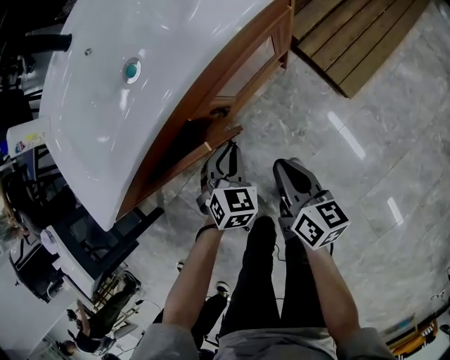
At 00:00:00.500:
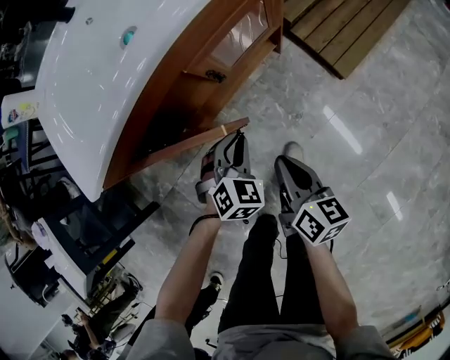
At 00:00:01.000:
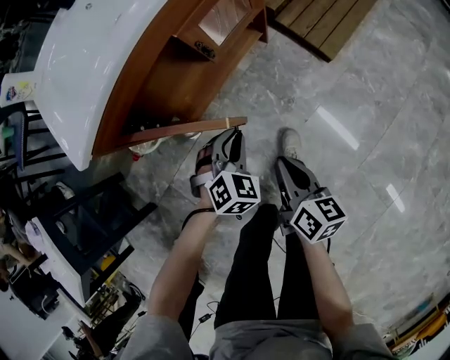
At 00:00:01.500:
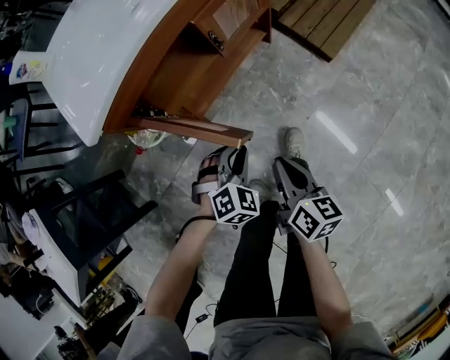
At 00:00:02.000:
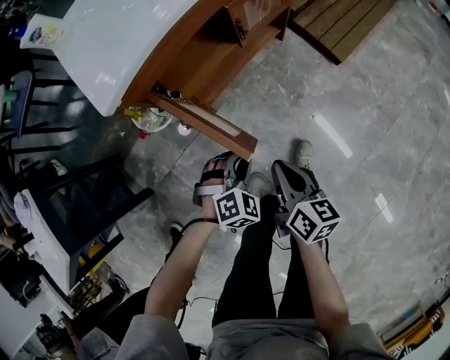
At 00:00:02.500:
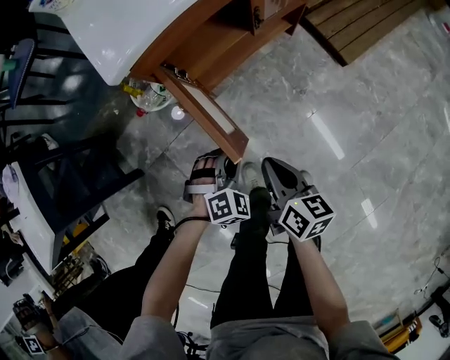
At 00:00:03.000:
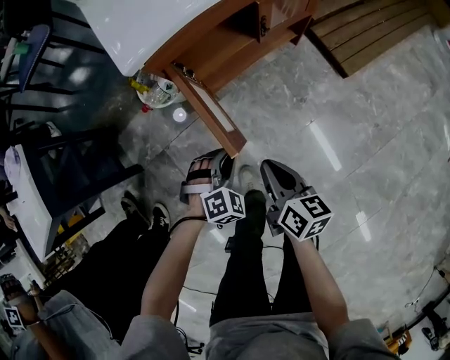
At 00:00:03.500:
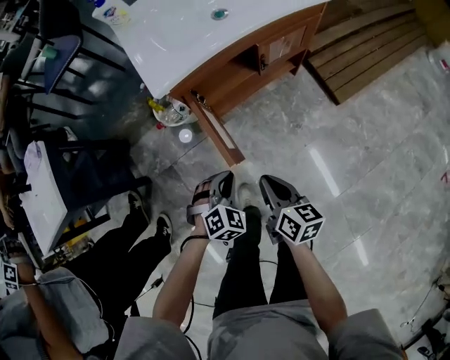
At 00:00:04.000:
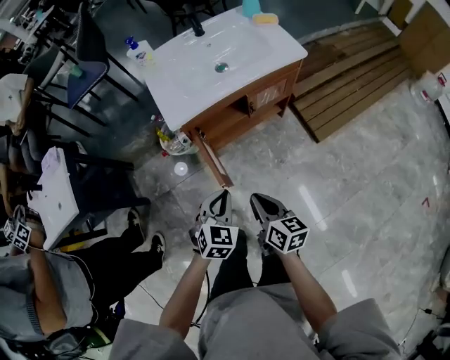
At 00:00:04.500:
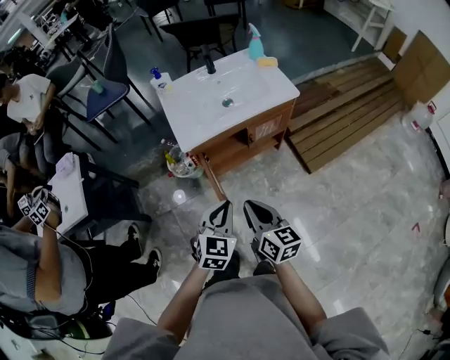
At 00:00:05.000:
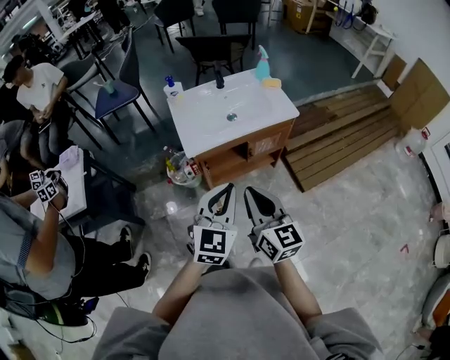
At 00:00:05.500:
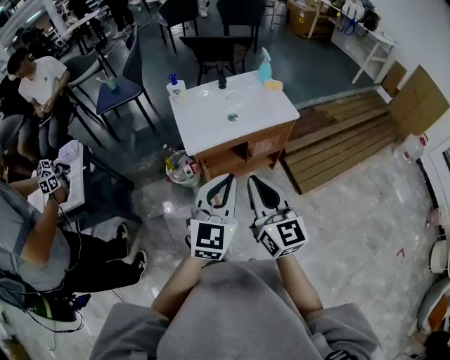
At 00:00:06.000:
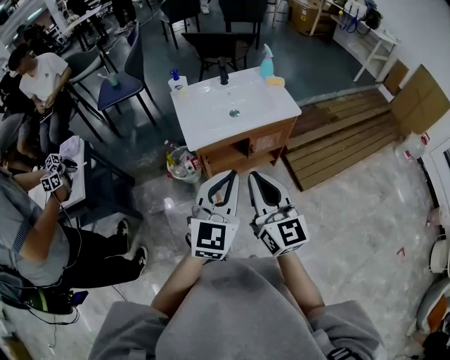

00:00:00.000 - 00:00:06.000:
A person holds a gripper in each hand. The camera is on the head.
00:00:00.000 - 00:00:02.000: The left gripper heads backward, covering roughly 25 cm, and swivels some 30 degrees; the right gripper is displaced backward and to the left by some 25 cm.
00:00:02.000 - 00:00:04.000: The two grippers go roughly 25 cm upward. The right gripper turns by some 20 degrees. Meanwhile the left gripper twists approximately 40 degrees counterclockwise, seen from behind.
00:00:04.000 - 00:00:06.000: The two grippers go some 35 cm upward. The right gripper swivels roughly 50 degrees. The left gripper points its fingers roughly 40 degrees further upward.

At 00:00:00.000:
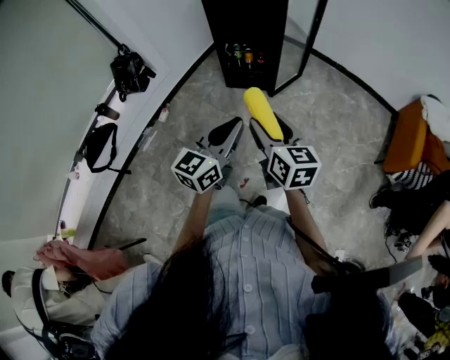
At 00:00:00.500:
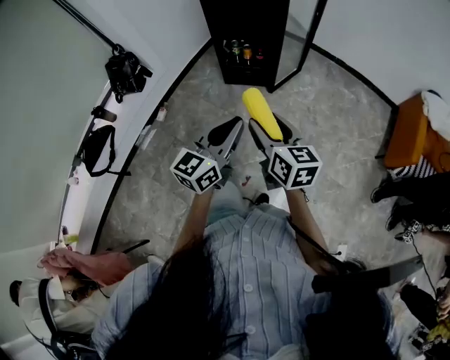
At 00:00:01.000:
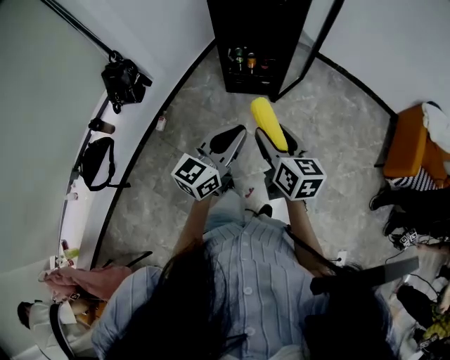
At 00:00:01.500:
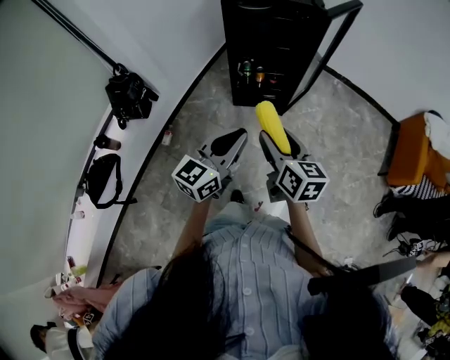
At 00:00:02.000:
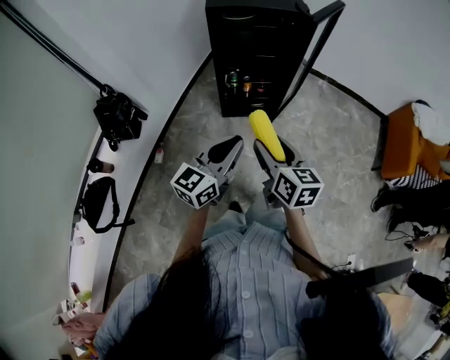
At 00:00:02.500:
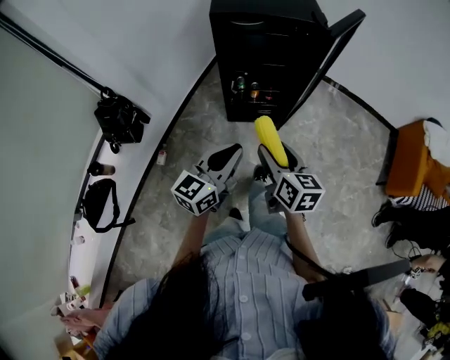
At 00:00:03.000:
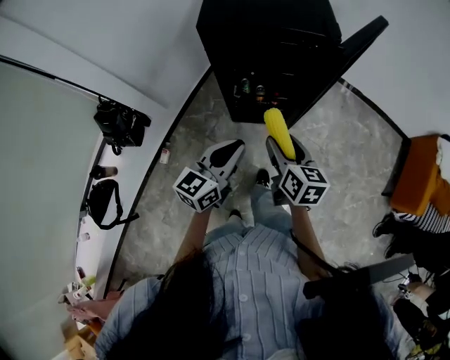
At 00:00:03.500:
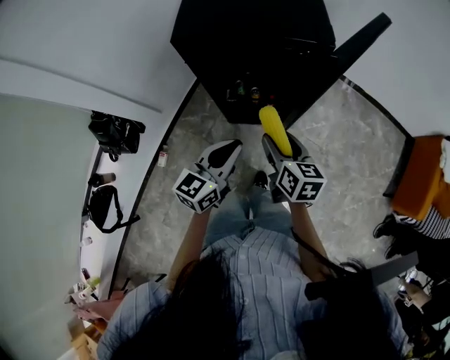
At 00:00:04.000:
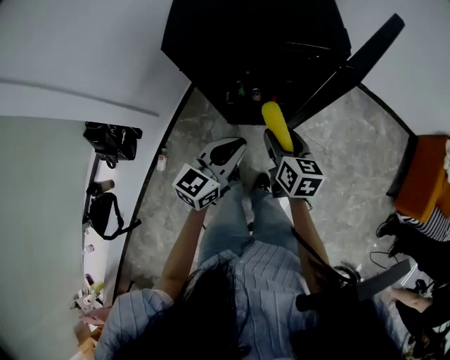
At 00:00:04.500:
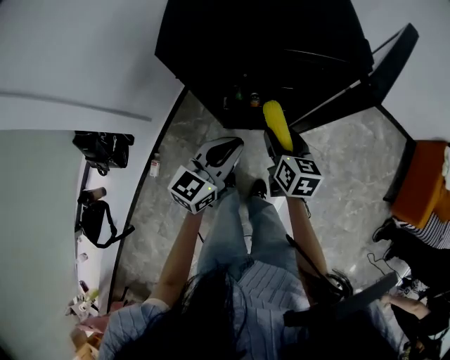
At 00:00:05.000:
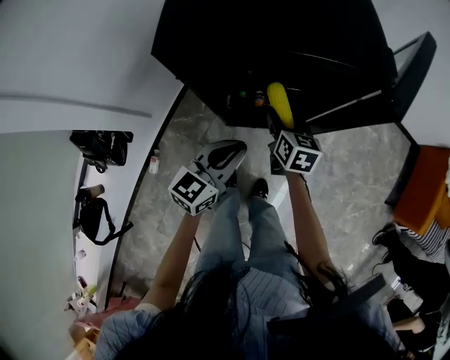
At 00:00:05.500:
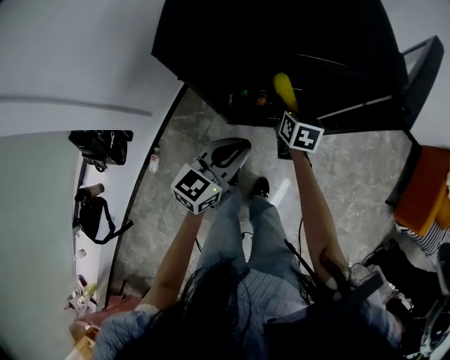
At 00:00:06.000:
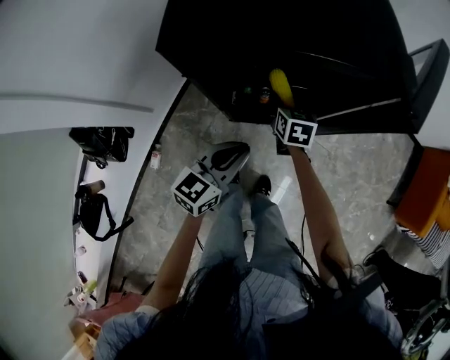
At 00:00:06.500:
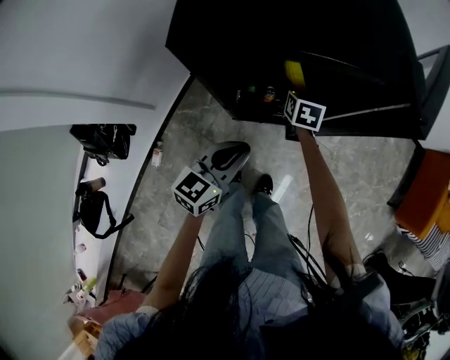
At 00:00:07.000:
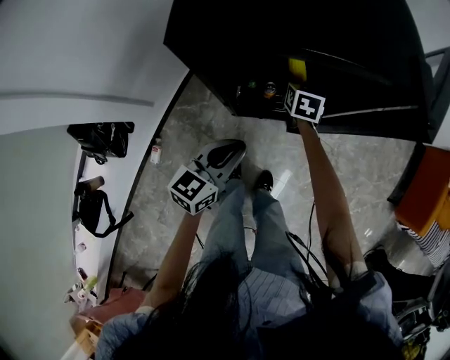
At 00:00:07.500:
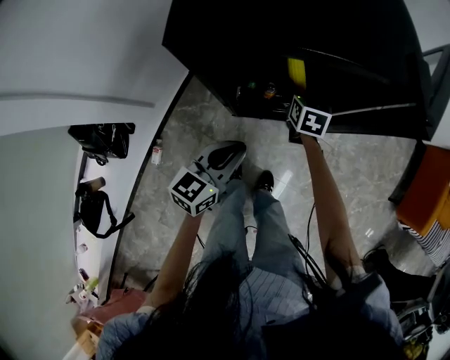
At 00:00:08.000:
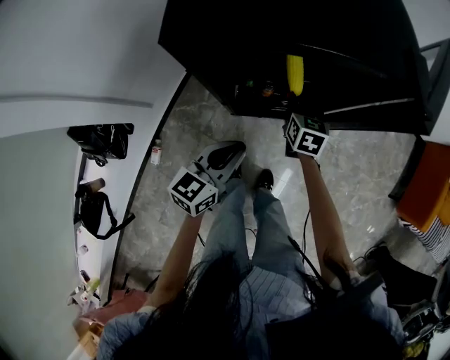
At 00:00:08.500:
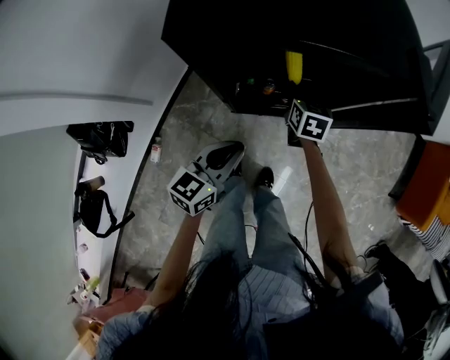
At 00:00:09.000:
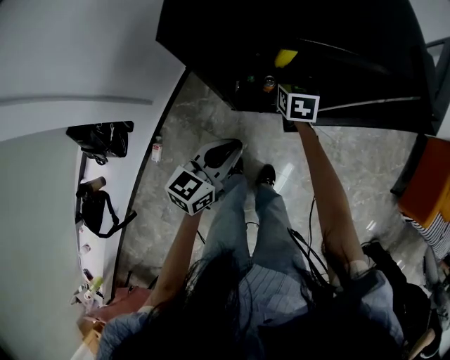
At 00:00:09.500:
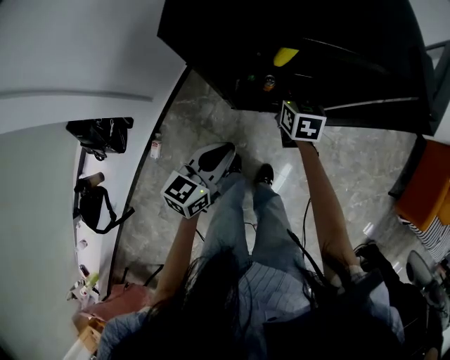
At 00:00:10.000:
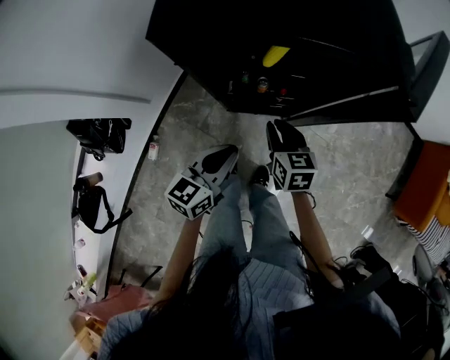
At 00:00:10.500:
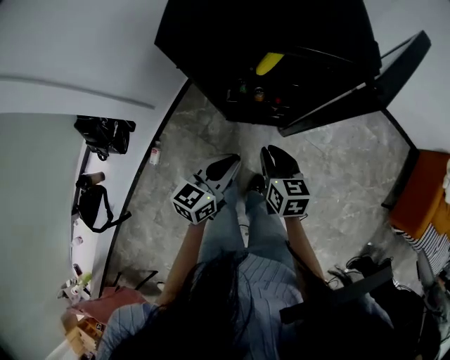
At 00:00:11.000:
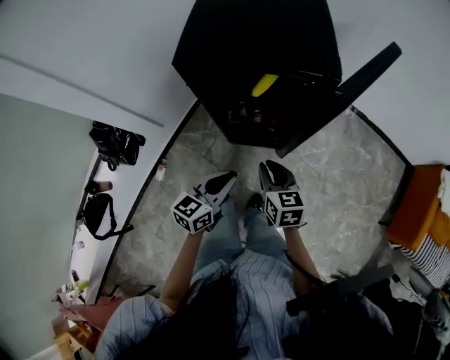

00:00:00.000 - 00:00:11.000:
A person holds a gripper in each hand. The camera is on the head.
00:00:00.000 - 00:00:02.000: The grippers both shift to the left and forward by about 25 cm.
00:00:02.000 - 00:00:03.500: Both grippers move forward, approximately 30 cm.
00:00:03.500 - 00:00:05.500: The left gripper is displaced forward and downward by roughly 15 cm, while the right gripper is displaced forward and downward by about 30 cm.
00:00:05.500 - 00:00:07.500: The left gripper ends up approximately 5 cm from where it was.
00:00:07.500 - 00:00:09.000: The right gripper closes up.
00:00:09.000 - 00:00:11.000: The right gripper goes about 30 cm backward and upward. Meanwhile the left gripper goes roughly 15 cm upward, backward and to the right.

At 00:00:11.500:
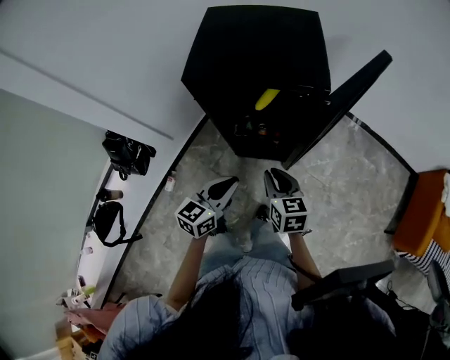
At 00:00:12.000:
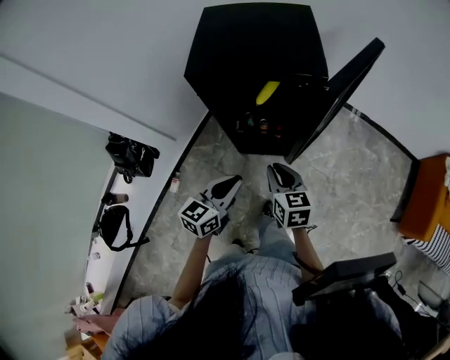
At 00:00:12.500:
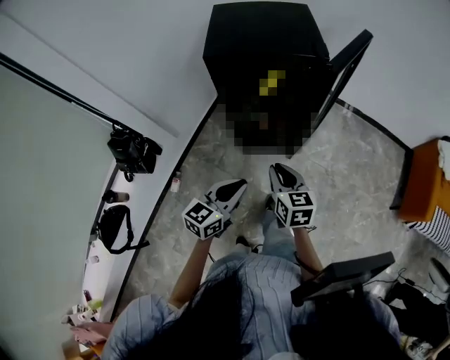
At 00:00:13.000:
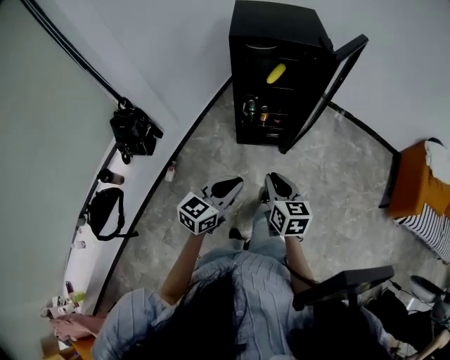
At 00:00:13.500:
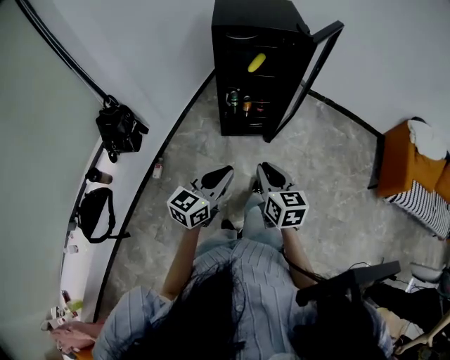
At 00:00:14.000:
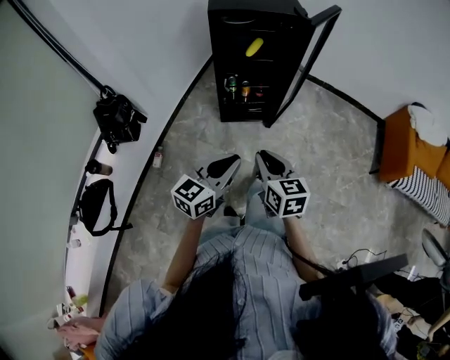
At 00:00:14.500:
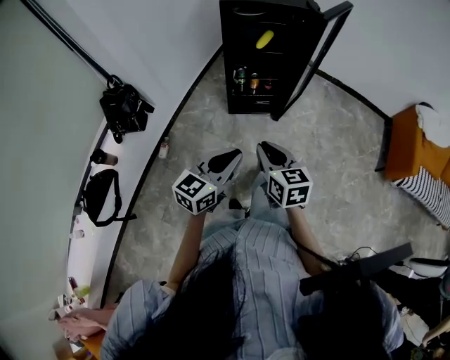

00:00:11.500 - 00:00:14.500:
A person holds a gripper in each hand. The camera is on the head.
00:00:11.500 - 00:00:13.000: Both grippers move backward, approximately 25 cm.
00:00:13.000 - 00:00:14.500: The grippers both shift backward by about 5 cm.

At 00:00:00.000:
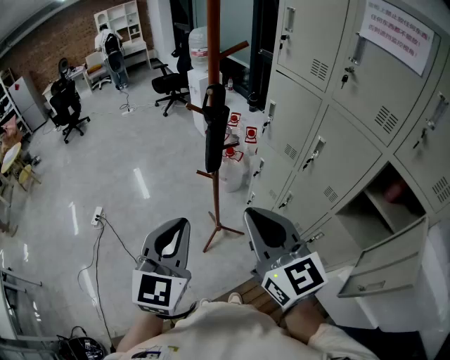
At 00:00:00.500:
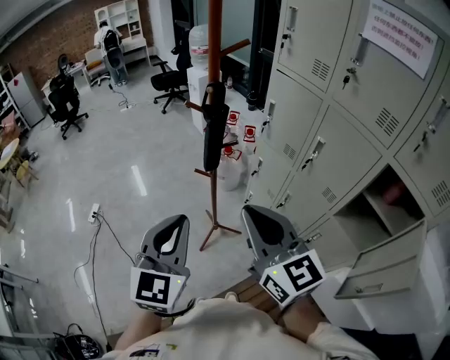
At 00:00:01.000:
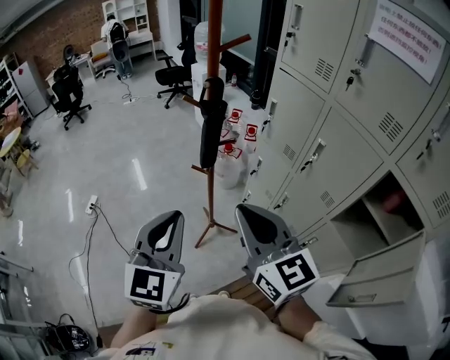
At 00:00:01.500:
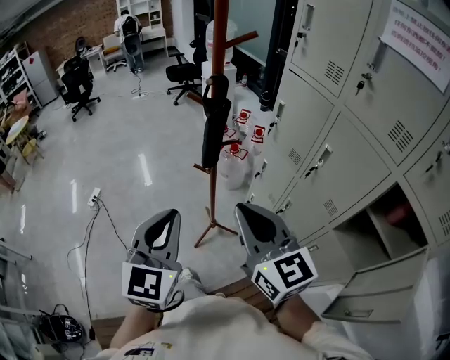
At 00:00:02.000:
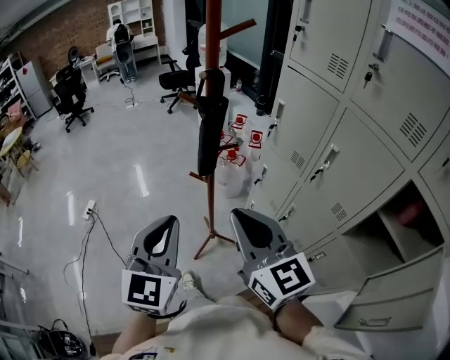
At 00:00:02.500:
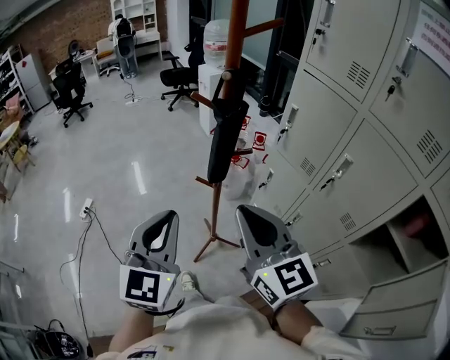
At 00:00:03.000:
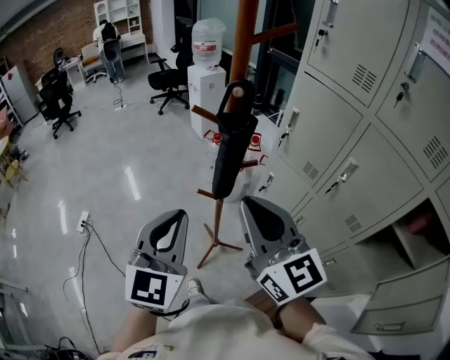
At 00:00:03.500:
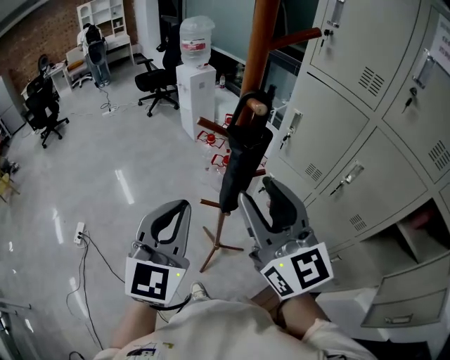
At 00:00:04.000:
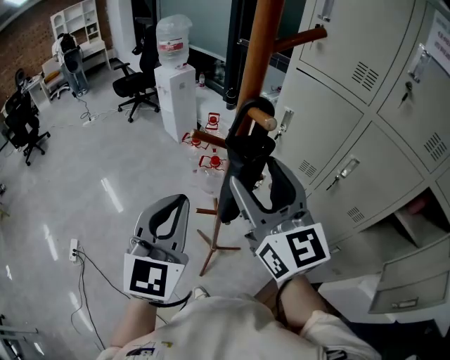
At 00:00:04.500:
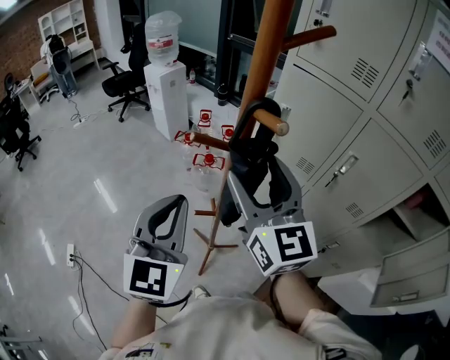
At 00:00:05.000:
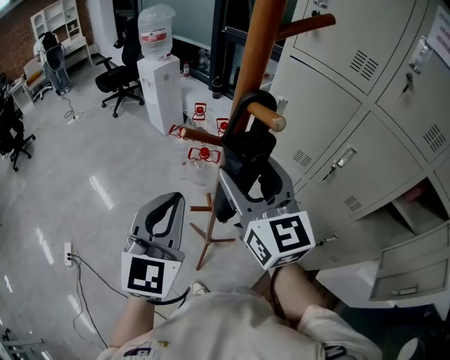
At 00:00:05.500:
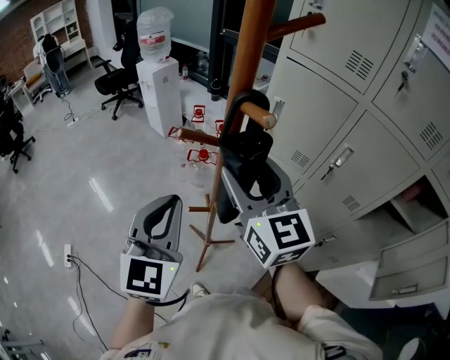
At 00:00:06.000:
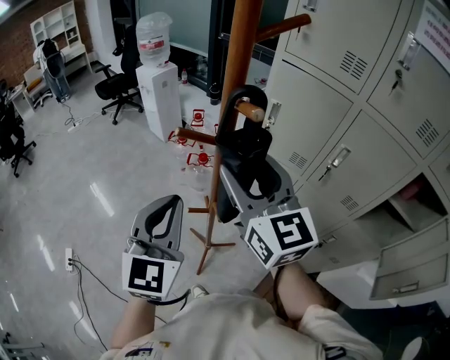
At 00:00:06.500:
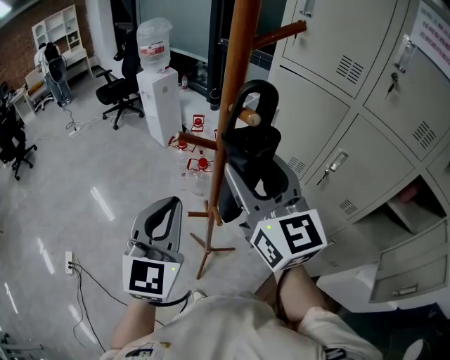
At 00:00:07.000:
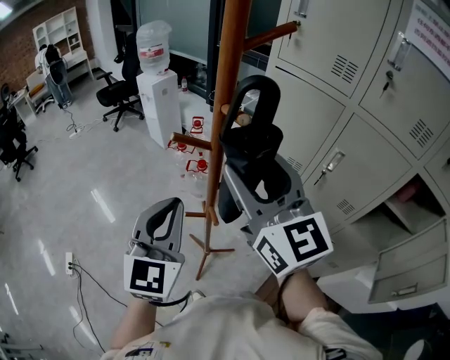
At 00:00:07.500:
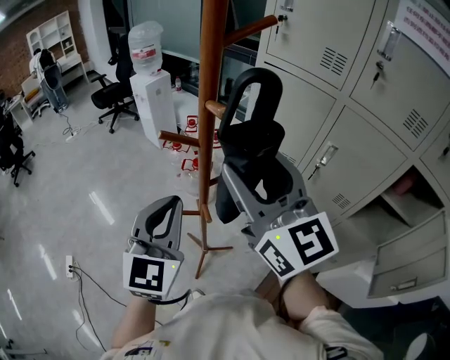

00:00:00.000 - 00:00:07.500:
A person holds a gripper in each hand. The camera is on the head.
00:00:00.000 - 00:00:02.000: Both grippers travel together downward and forward, some 10 cm.
00:00:02.000 - 00:00:04.000: The grippers both shift forward by approximately 25 cm. The right gripper rotates roughly 20 degrees, and opens up, while the left gripper turns by about 20 degrees.
00:00:04.000 - 00:00:05.500: The right gripper moves roughly 5 cm.
00:00:05.500 - 00:00:07.500: The right gripper is displaced upward and backward by about 10 cm.
